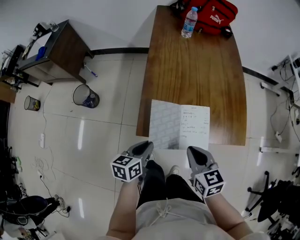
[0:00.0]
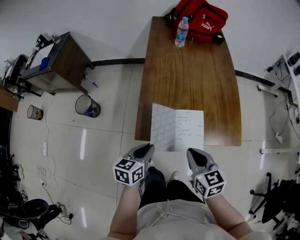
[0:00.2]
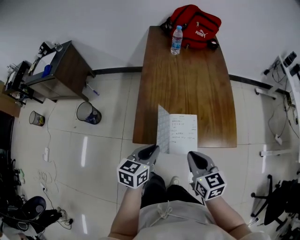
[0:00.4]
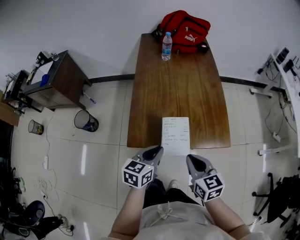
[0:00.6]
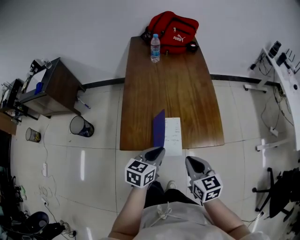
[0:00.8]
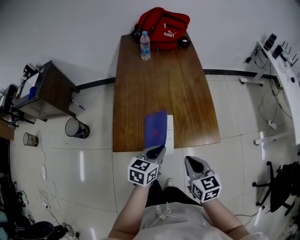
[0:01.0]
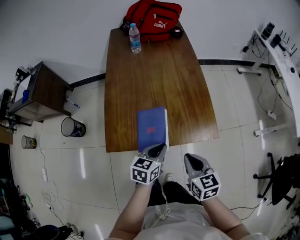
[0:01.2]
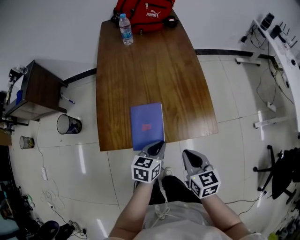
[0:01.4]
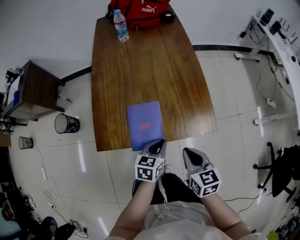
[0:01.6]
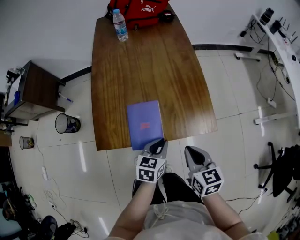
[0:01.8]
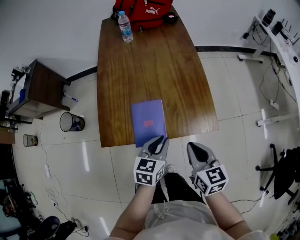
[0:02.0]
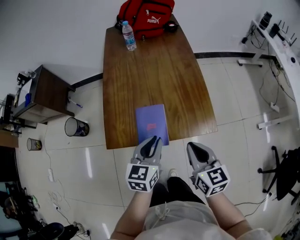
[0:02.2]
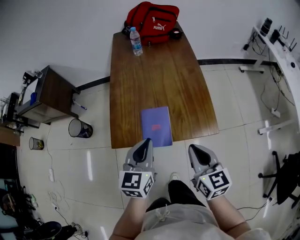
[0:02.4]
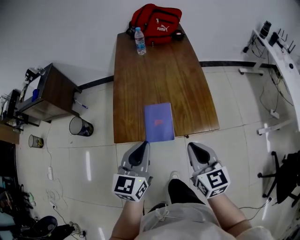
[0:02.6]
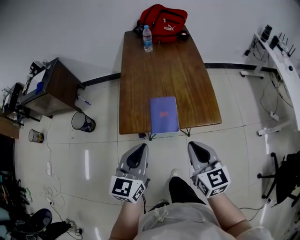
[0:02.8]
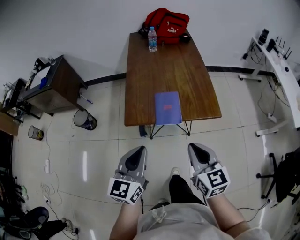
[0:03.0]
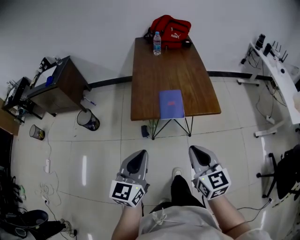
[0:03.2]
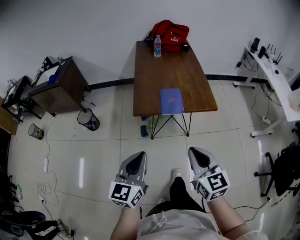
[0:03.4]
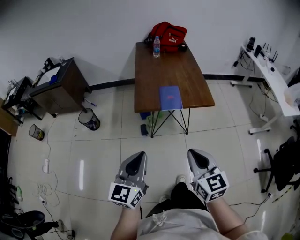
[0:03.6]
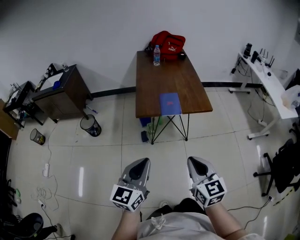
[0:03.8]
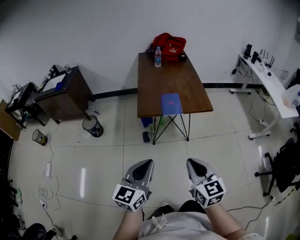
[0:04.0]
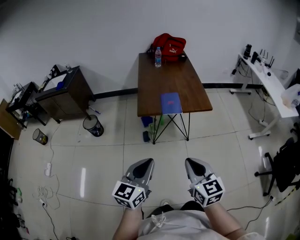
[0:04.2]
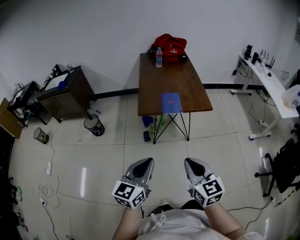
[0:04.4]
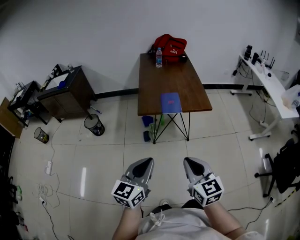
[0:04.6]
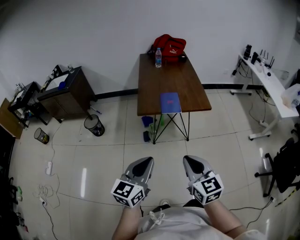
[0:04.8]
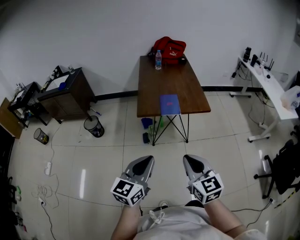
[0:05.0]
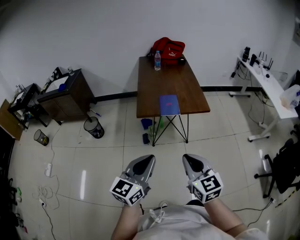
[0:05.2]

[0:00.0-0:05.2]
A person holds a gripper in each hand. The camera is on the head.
0:00.0 to 0:01.8: The two grippers go about 25 cm to the right. The left gripper rotates roughly 20 degrees.
0:01.8 to 0:03.4: The two grippers go roughly 40 cm backward, upward and to the left. The right gripper swivels about 20 degrees. The left gripper points its fingers about 30 degrees further upward.
0:03.4 to 0:05.2: The grippers both shift backward by about 10 cm.

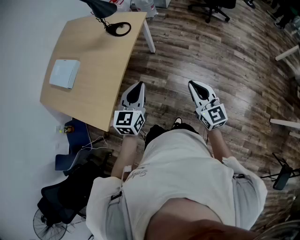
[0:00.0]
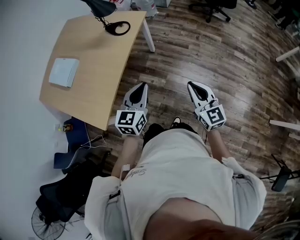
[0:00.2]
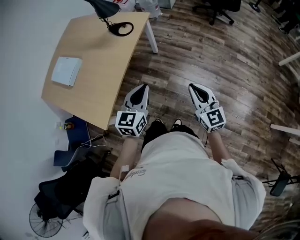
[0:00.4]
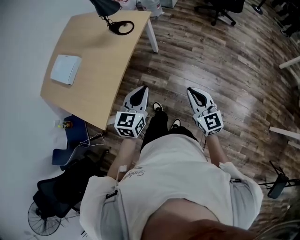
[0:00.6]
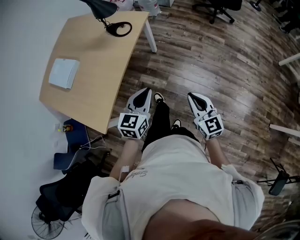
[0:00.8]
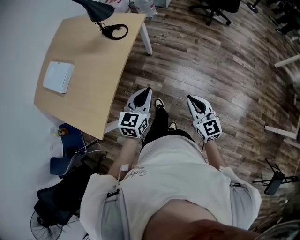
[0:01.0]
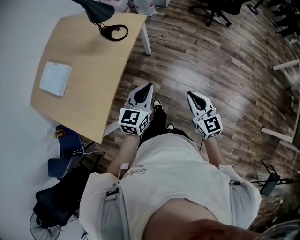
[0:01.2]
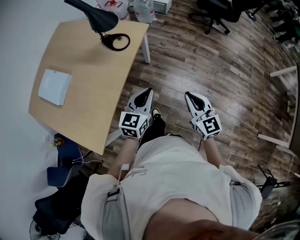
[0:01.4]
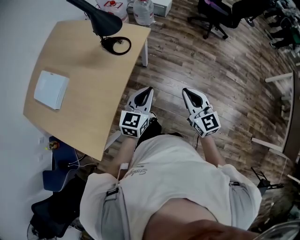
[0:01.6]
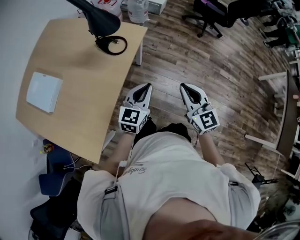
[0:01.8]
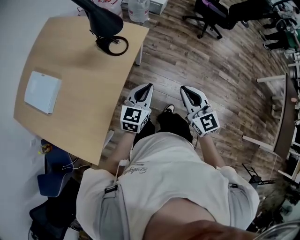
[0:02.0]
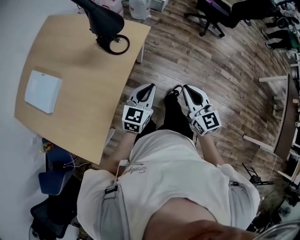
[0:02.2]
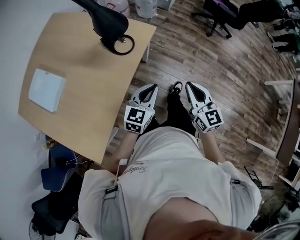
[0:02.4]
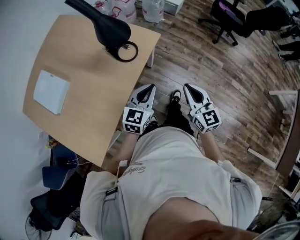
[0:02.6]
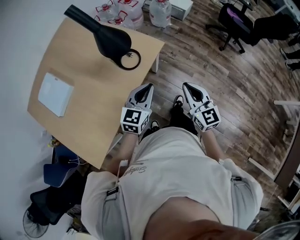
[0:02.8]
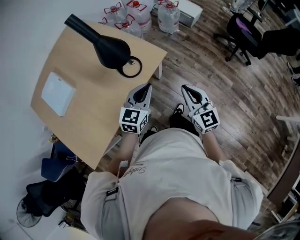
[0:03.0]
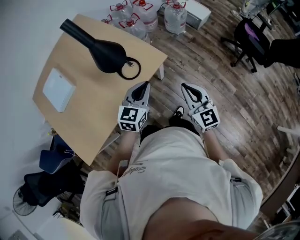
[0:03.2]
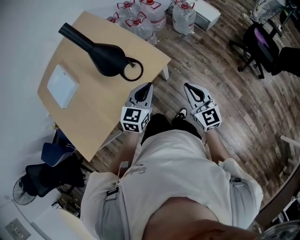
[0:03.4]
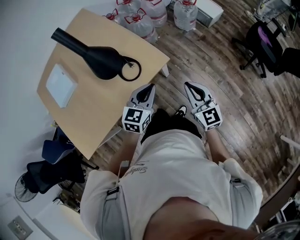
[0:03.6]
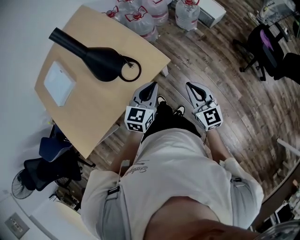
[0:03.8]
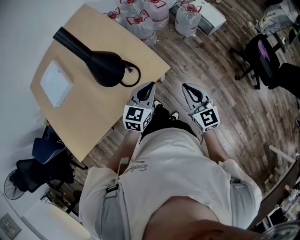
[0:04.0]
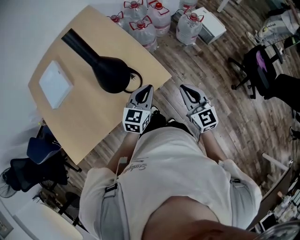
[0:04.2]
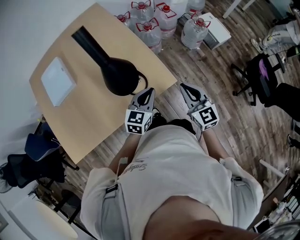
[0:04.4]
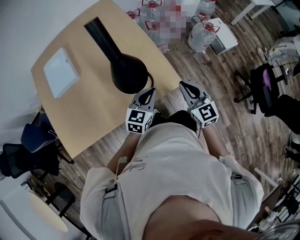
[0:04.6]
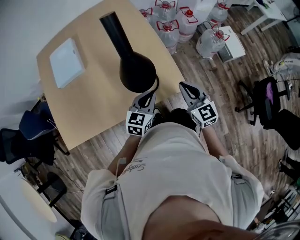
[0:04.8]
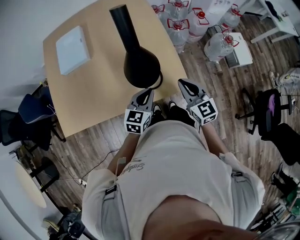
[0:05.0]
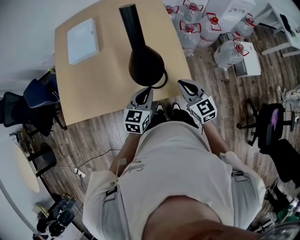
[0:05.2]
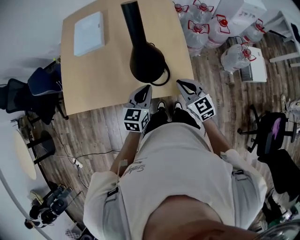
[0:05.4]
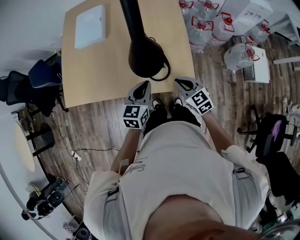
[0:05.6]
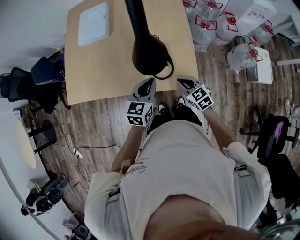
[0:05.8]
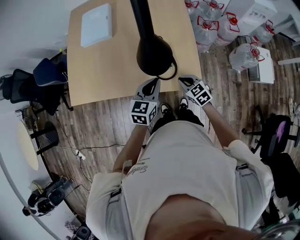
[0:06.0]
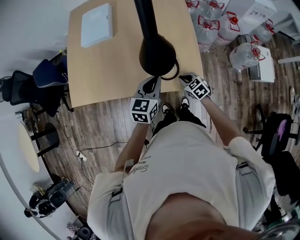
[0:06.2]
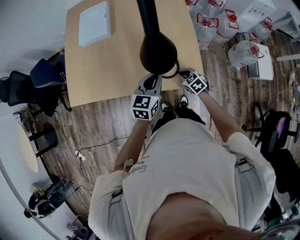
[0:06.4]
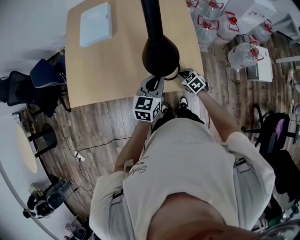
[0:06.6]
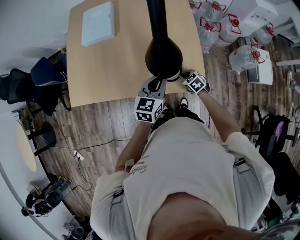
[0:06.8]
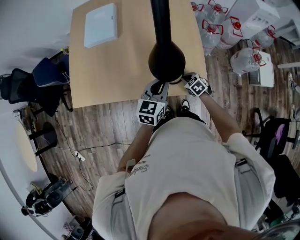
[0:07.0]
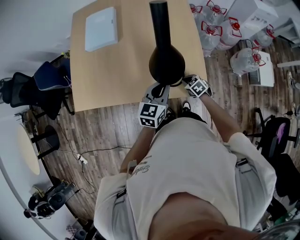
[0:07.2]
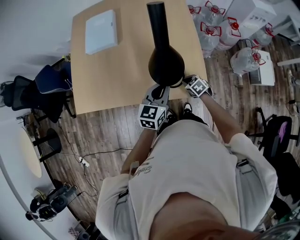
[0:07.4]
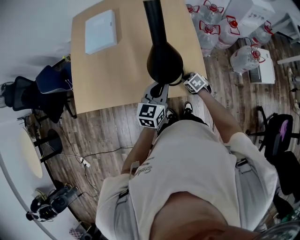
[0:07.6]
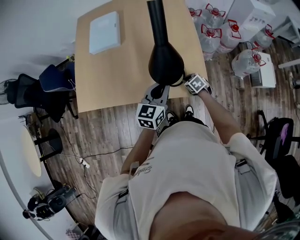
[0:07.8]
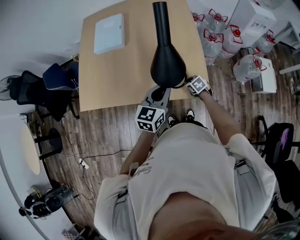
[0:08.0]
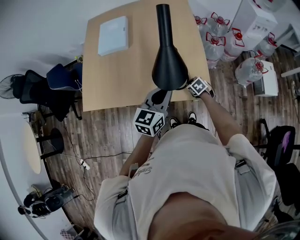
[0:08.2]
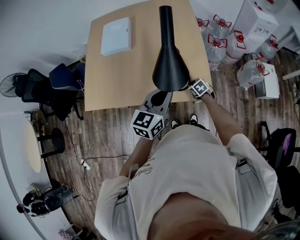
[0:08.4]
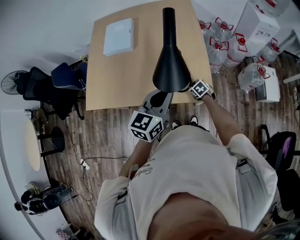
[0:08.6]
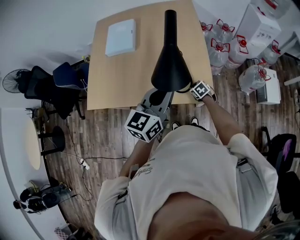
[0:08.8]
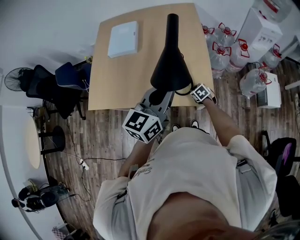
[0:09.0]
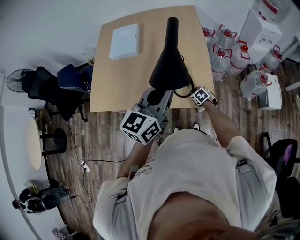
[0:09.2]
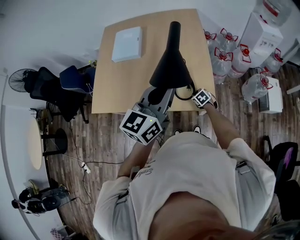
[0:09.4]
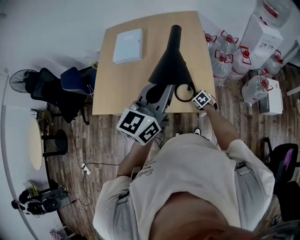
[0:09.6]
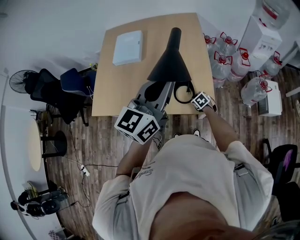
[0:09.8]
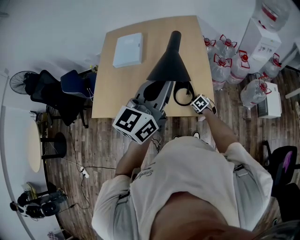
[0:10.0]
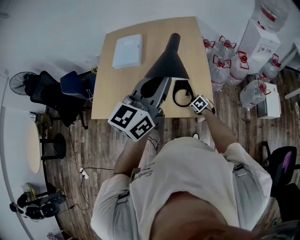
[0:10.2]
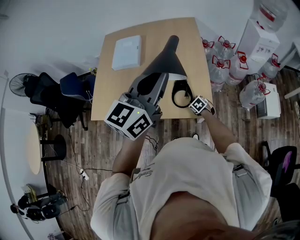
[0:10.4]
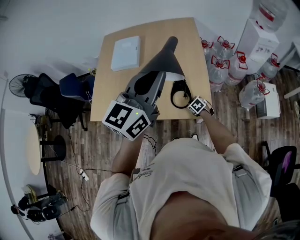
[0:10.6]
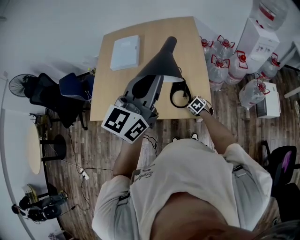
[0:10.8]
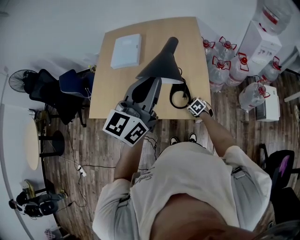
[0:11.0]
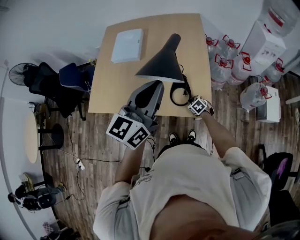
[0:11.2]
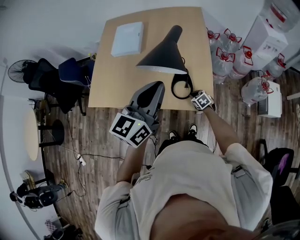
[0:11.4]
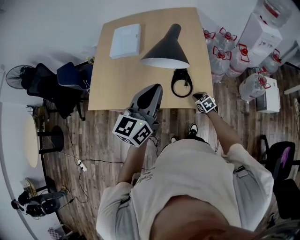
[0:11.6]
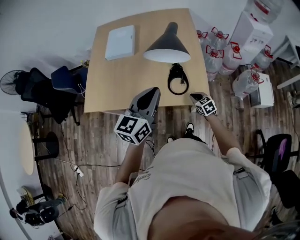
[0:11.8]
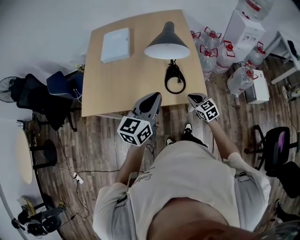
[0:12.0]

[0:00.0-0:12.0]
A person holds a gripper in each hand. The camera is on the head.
0:00.0 to 0:01.6: The two grippers go about 20 cm forward.
0:01.6 to 0:03.0: Both grippers travel together forward, about 25 cm.
0:03.0 to 0:04.4: The grippers both shift forward by roughly 20 cm. The right gripper rotates about 20 degrees.
0:04.4 to 0:06.0: The left gripper ends up about 10 cm from where it was, and rotates roughly 30 degrees. The right gripper moves downward, approximately 20 cm, and swivels about 50 degrees.
0:06.0 to 0:07.6: The right gripper travels downward and forward by roughly 10 cm, and turns by some 20 degrees.
0:07.6 to 0:09.0: The left gripper moves upward, some 20 cm.
0:09.0 to 0:10.4: The left gripper shifts about 10 cm upward.
0:10.4 to 0:12.0: The left gripper shifts roughly 20 cm downward, to the left and backward; the right gripper shifts about 15 cm upward and backward, and swivels roughly 30 degrees.

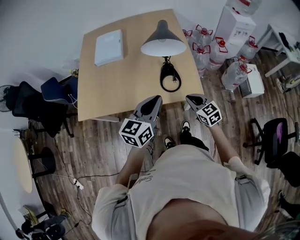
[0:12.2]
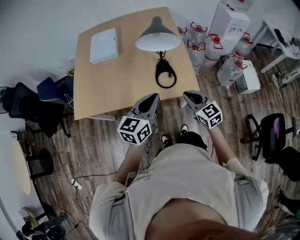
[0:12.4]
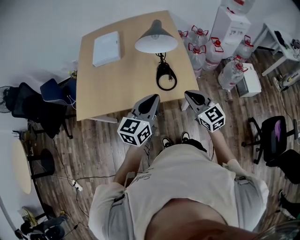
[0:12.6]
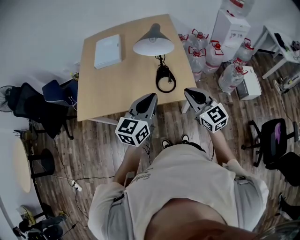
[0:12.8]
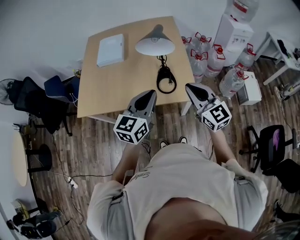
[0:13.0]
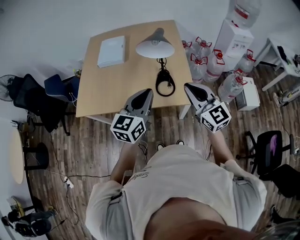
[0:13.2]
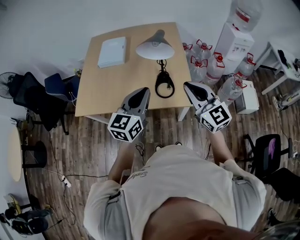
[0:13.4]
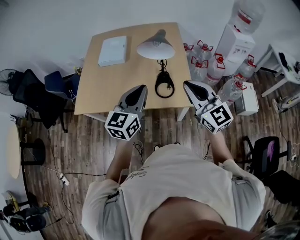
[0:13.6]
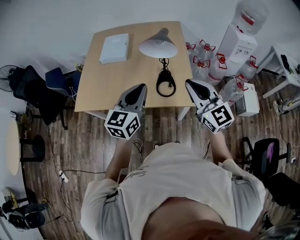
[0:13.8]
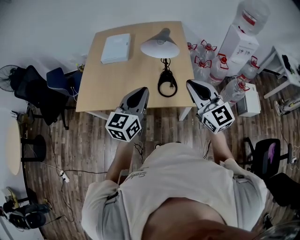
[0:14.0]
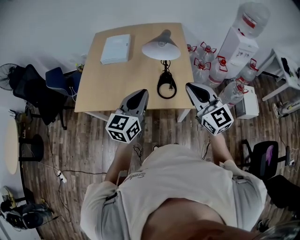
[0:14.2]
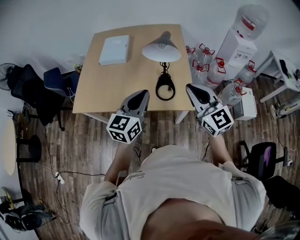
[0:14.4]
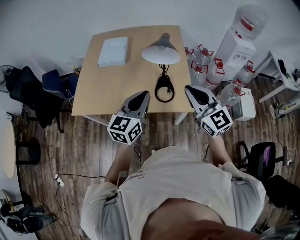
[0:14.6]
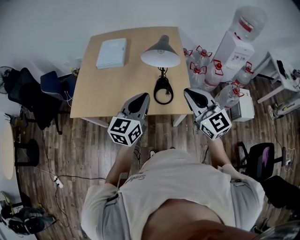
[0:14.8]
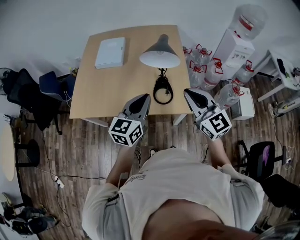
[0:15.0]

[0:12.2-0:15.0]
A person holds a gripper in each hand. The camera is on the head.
0:12.2 to 0:13.6: The right gripper goes approximately 25 cm upward, and tips its fingers upward by about 30 degrees. The left gripper moves upward, some 10 cm.
0:13.6 to 0:15.0: The grippers stay close to where they were, moving slightly.

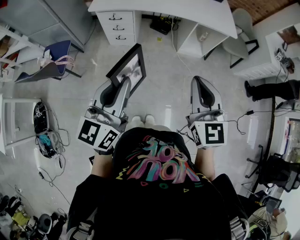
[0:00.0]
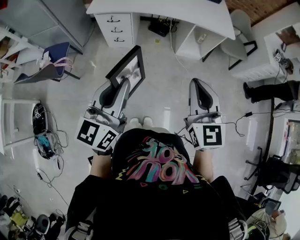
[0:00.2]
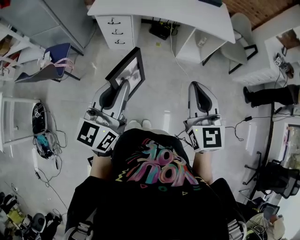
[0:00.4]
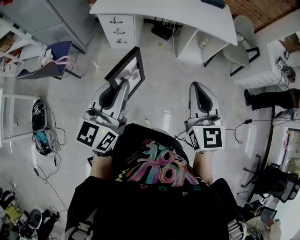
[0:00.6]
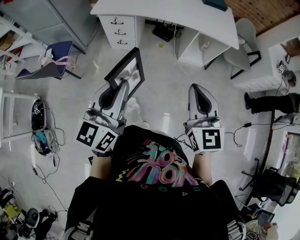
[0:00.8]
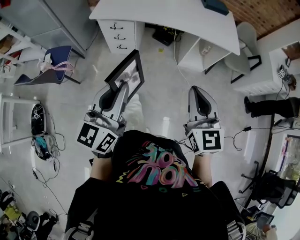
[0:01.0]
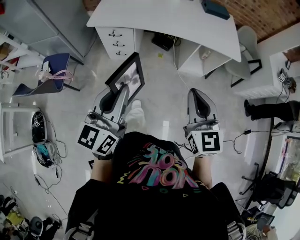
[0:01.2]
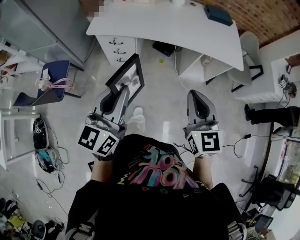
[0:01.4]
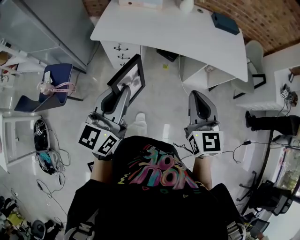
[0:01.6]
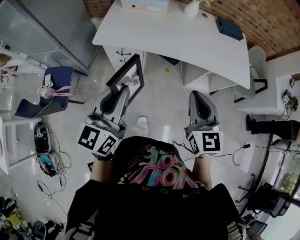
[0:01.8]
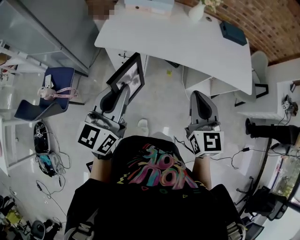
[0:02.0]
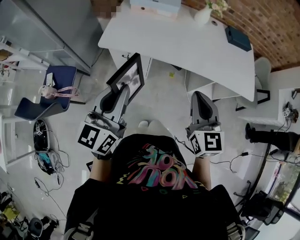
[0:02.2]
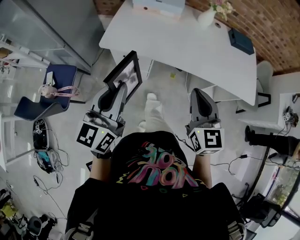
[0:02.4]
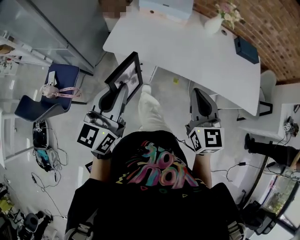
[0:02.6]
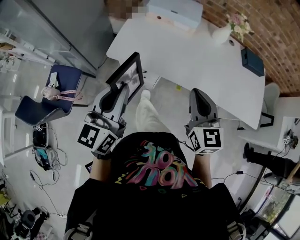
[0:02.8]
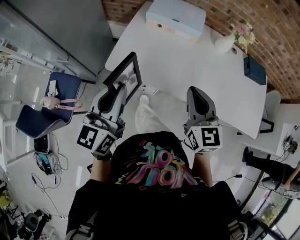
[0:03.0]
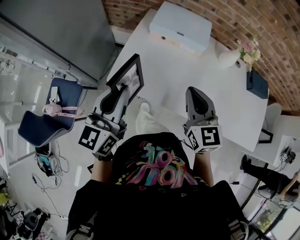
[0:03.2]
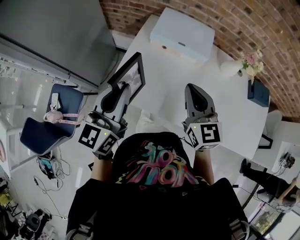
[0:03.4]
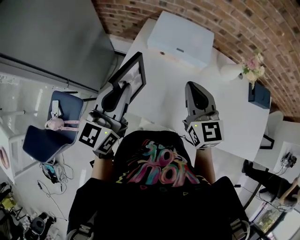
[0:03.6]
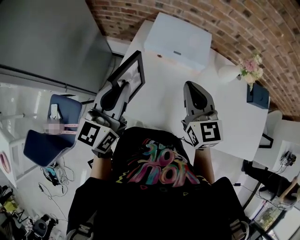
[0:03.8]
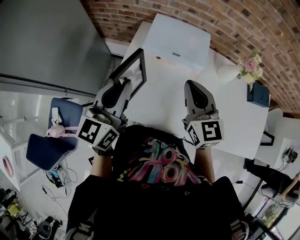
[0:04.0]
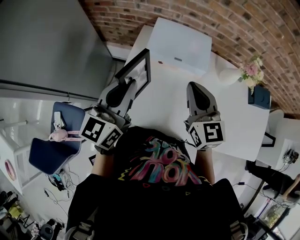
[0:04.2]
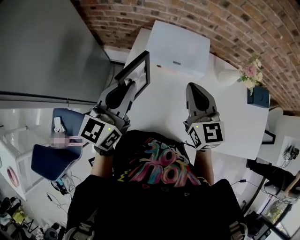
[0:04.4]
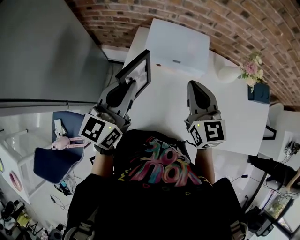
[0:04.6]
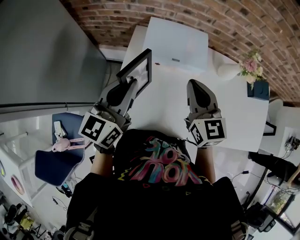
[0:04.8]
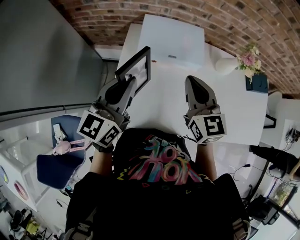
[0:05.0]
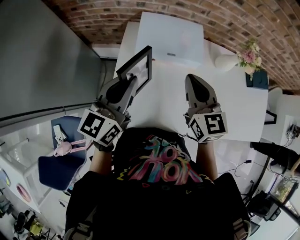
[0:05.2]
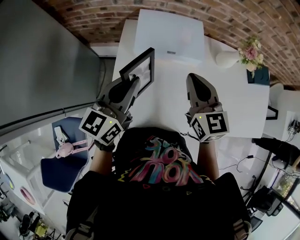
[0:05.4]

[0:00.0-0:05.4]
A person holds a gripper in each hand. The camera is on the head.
0:00.0 to 0:01.4: Both grippers travel together forward, approximately 20 cm.
0:01.4 to 0:02.8: The grippers both shift forward and to the left by approximately 35 cm.
0:02.8 to 0:04.0: The grippers both shift forward by roughly 35 cm.
0:04.0 to 0:05.4: Both grippers move forward, about 5 cm.
